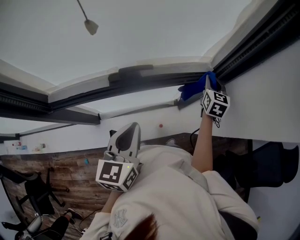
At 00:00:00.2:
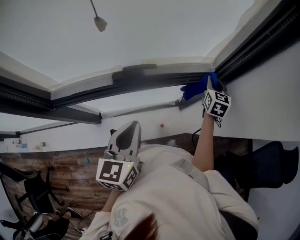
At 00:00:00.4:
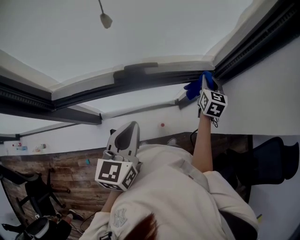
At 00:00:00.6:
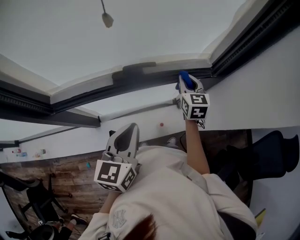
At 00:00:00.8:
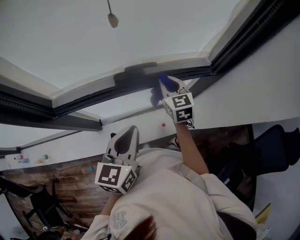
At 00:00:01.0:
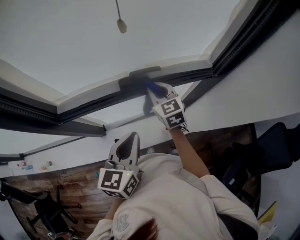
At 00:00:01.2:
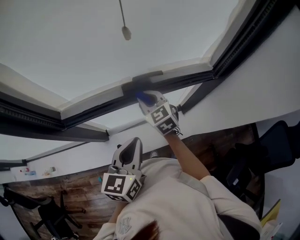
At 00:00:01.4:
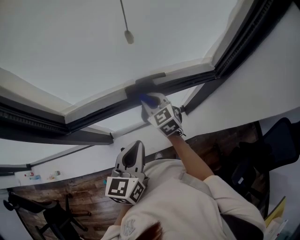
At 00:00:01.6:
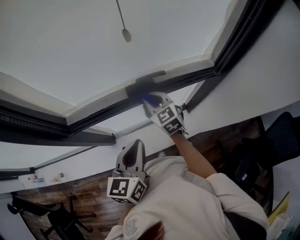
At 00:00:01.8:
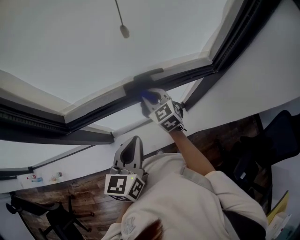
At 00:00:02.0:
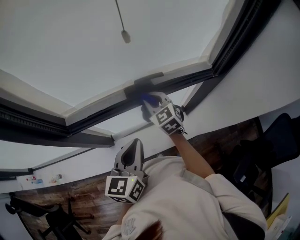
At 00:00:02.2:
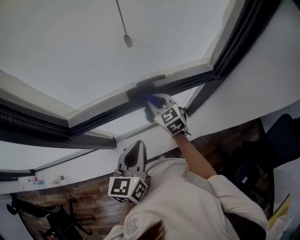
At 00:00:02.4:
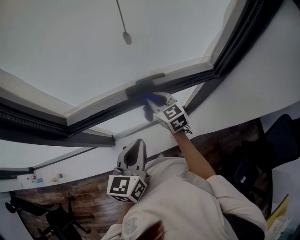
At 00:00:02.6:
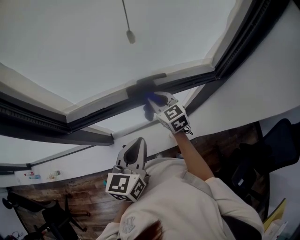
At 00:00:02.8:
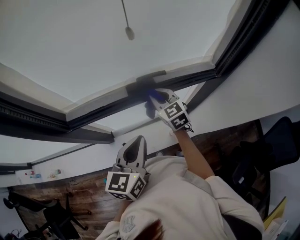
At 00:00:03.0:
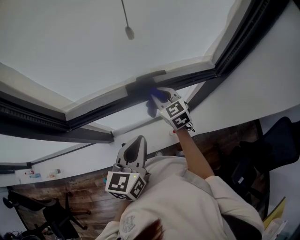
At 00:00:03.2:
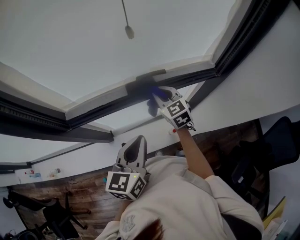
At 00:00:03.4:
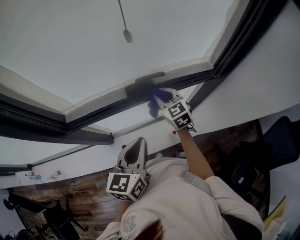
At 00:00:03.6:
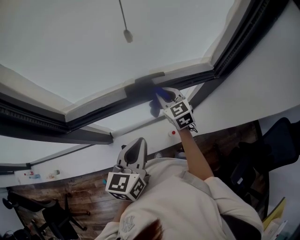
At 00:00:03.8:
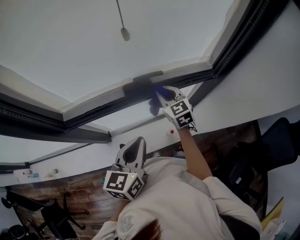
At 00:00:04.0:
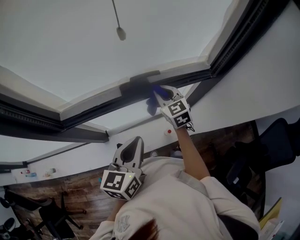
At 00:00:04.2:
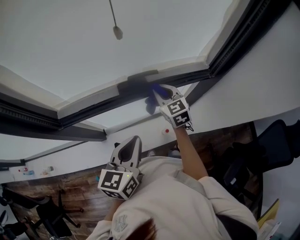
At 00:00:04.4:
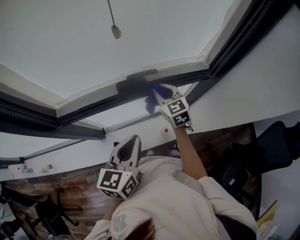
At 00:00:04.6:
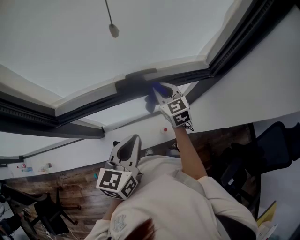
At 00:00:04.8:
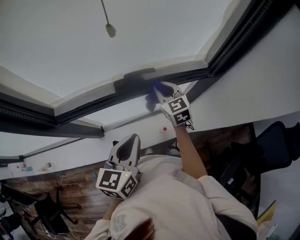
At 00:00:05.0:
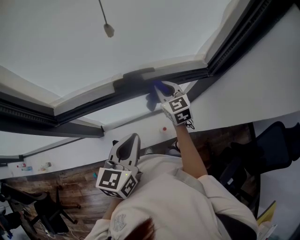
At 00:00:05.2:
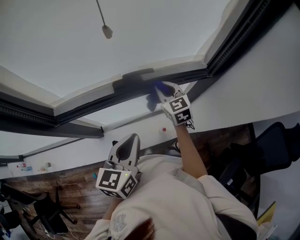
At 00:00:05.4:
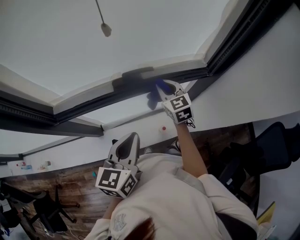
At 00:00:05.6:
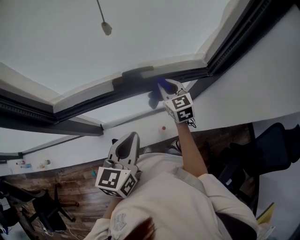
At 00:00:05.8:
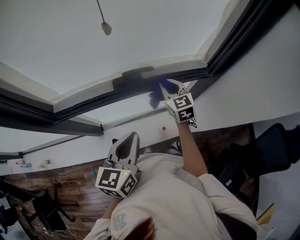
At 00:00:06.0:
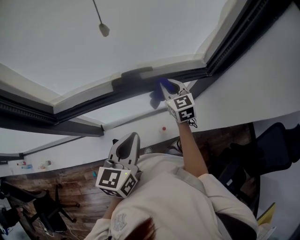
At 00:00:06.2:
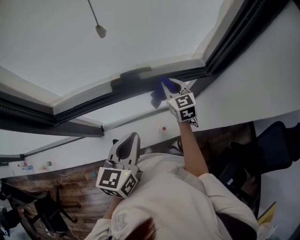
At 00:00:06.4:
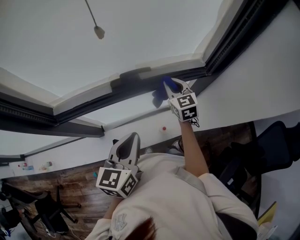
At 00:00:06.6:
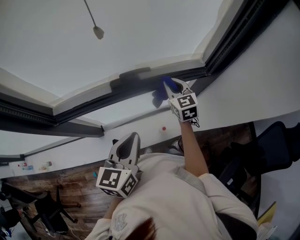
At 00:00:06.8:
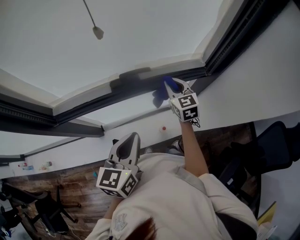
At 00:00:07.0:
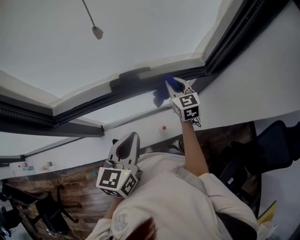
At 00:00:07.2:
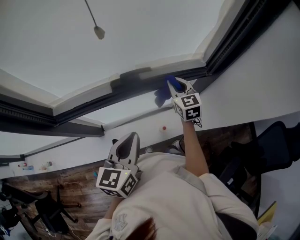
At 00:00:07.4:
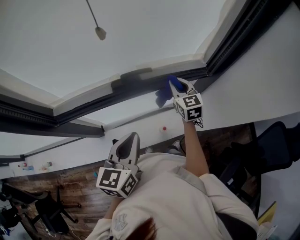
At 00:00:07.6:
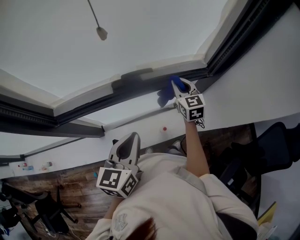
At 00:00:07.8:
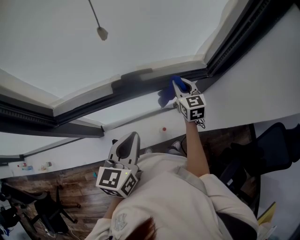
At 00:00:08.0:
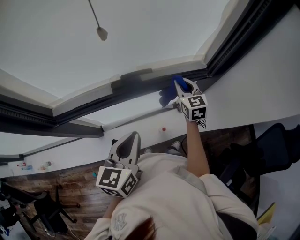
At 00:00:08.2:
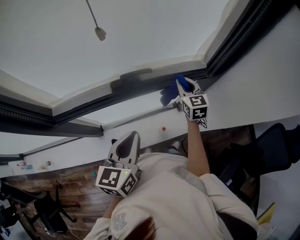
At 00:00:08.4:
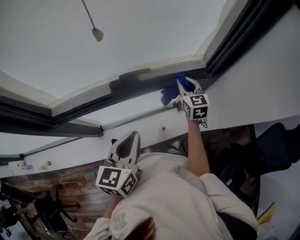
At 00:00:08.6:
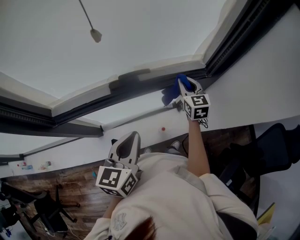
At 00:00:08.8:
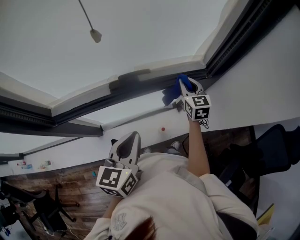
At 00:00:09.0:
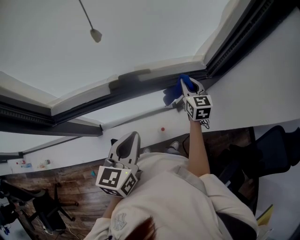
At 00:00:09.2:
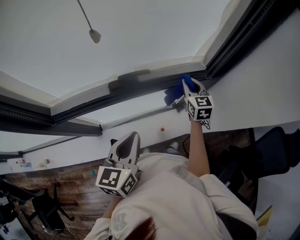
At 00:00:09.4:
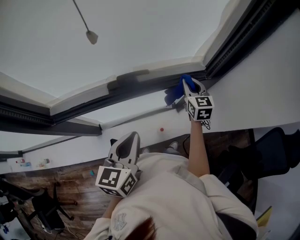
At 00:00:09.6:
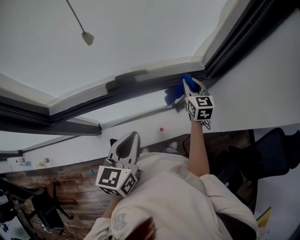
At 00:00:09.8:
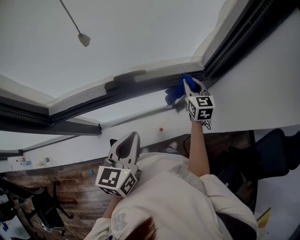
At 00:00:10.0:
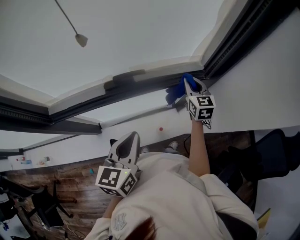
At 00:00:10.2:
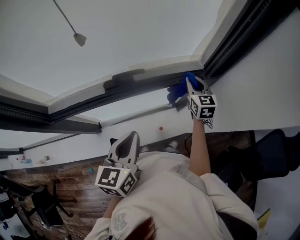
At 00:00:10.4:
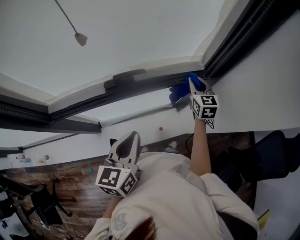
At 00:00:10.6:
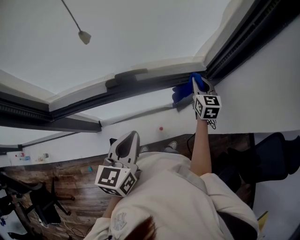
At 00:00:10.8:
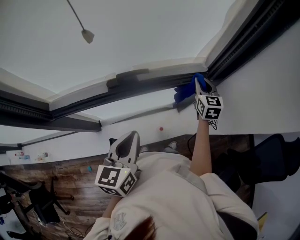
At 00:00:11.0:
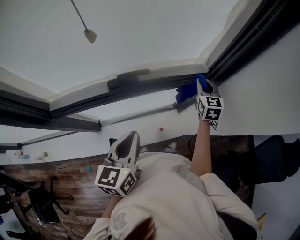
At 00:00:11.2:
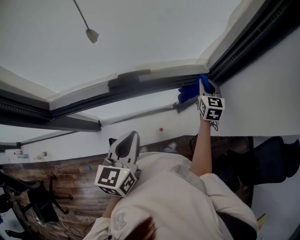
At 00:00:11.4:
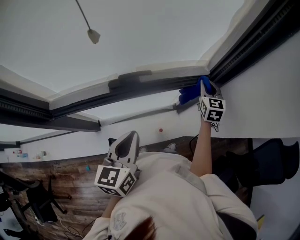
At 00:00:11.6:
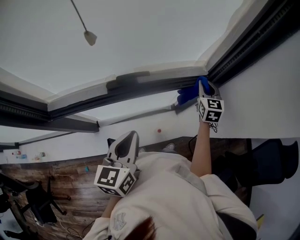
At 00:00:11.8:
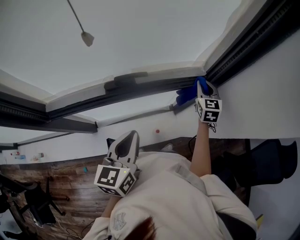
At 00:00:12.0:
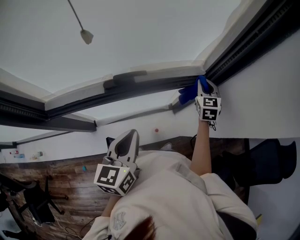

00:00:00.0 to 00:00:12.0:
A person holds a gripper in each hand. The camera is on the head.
00:00:00.0 to 00:00:01.6: The left gripper heads to the left, covering about 10 cm; the right gripper moves to the left, some 35 cm, and turns by roughly 40 degrees.
00:00:01.6 to 00:00:03.0: There are only small adjustments of the grippers.
00:00:03.0 to 00:00:04.4: The right gripper goes about 5 cm to the right.
00:00:04.4 to 00:00:06.0: The right gripper shifts about 5 cm to the right.
00:00:06.0 to 00:00:07.6: The right gripper shifts some 5 cm to the right.
00:00:07.6 to 00:00:09.0: The right gripper travels to the right by roughly 5 cm.
00:00:09.0 to 00:00:10.4: The right gripper heads to the right, covering roughly 5 cm.
00:00:10.4 to 00:00:12.0: The grippers make only small movements.

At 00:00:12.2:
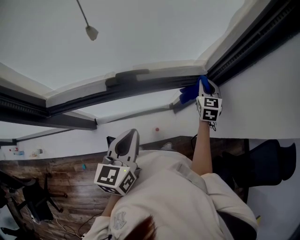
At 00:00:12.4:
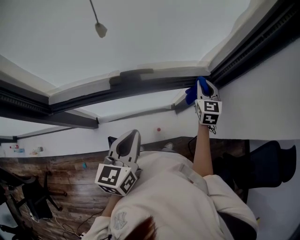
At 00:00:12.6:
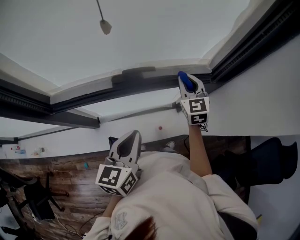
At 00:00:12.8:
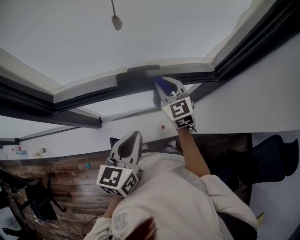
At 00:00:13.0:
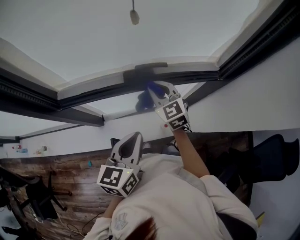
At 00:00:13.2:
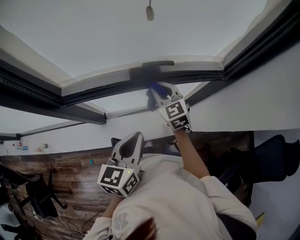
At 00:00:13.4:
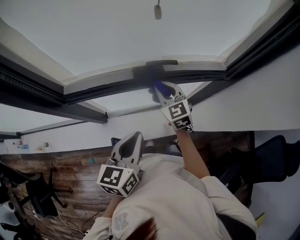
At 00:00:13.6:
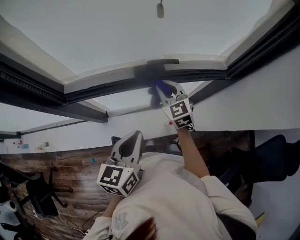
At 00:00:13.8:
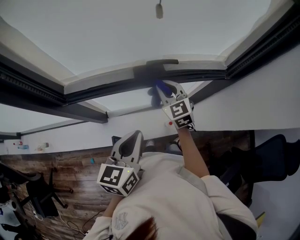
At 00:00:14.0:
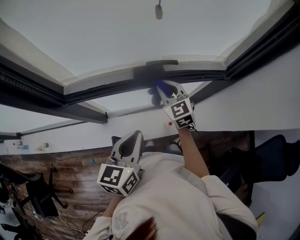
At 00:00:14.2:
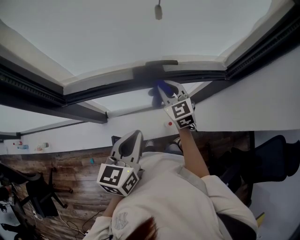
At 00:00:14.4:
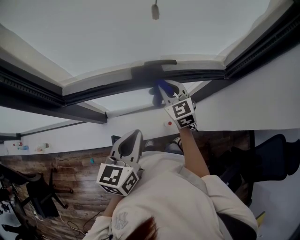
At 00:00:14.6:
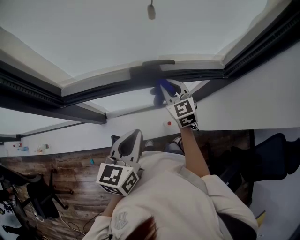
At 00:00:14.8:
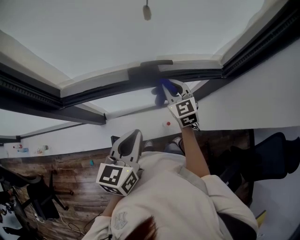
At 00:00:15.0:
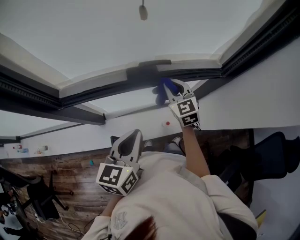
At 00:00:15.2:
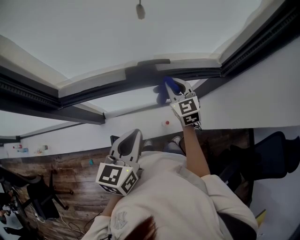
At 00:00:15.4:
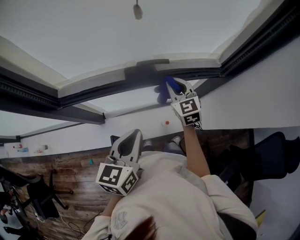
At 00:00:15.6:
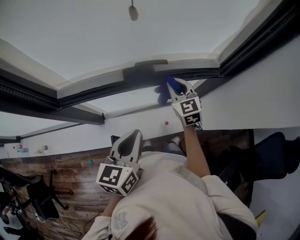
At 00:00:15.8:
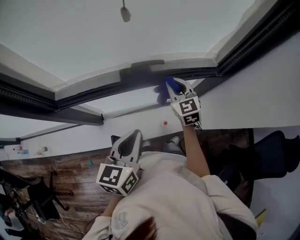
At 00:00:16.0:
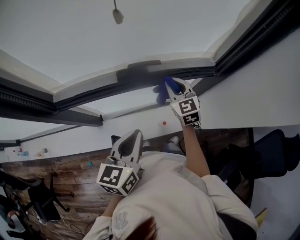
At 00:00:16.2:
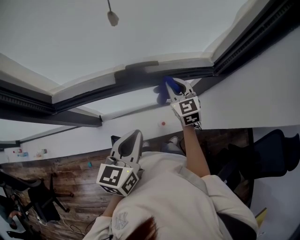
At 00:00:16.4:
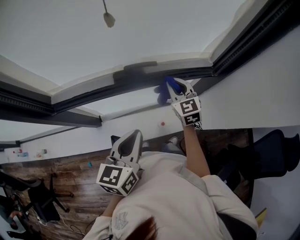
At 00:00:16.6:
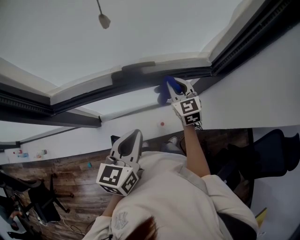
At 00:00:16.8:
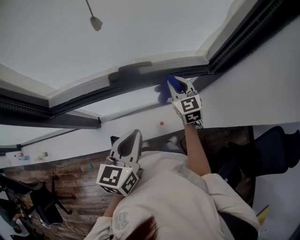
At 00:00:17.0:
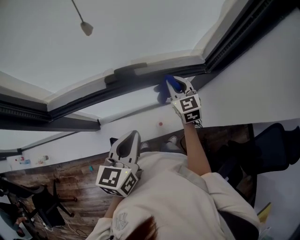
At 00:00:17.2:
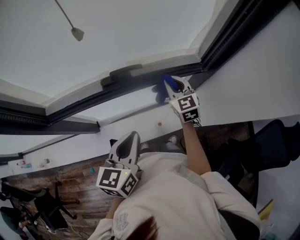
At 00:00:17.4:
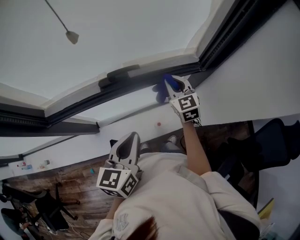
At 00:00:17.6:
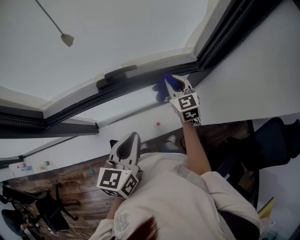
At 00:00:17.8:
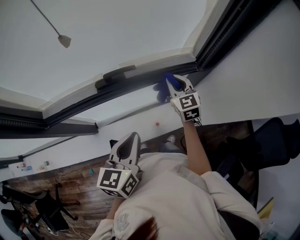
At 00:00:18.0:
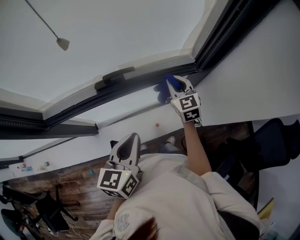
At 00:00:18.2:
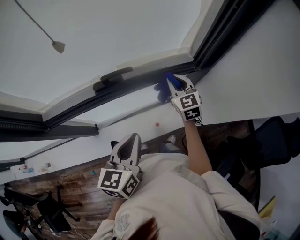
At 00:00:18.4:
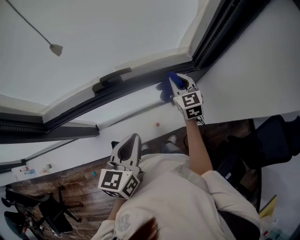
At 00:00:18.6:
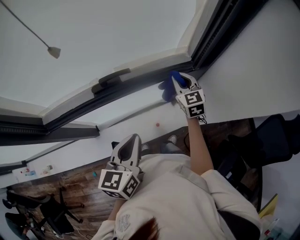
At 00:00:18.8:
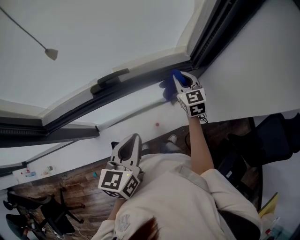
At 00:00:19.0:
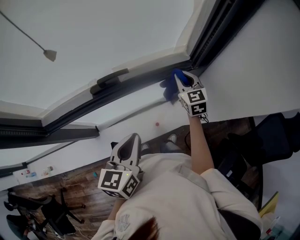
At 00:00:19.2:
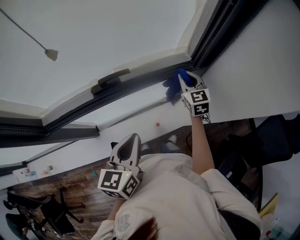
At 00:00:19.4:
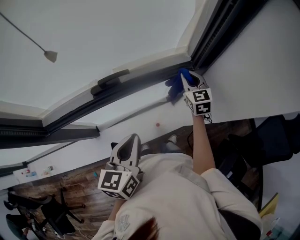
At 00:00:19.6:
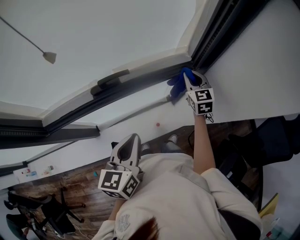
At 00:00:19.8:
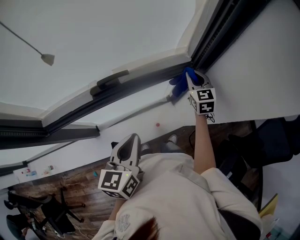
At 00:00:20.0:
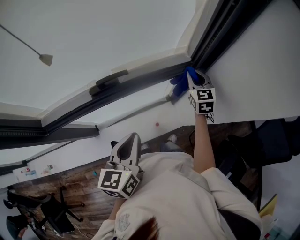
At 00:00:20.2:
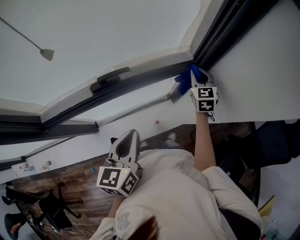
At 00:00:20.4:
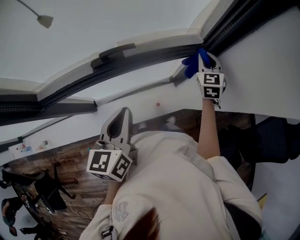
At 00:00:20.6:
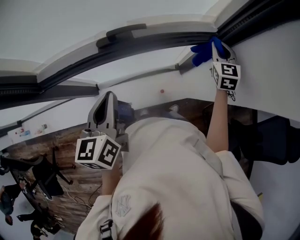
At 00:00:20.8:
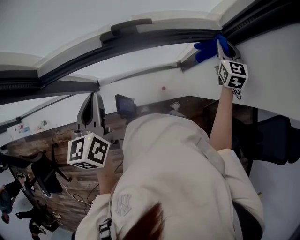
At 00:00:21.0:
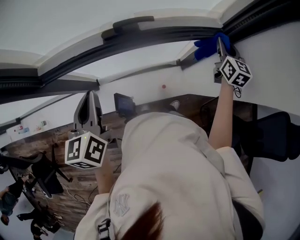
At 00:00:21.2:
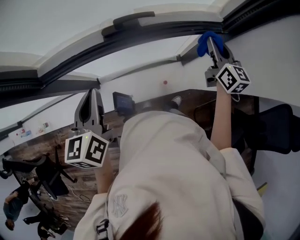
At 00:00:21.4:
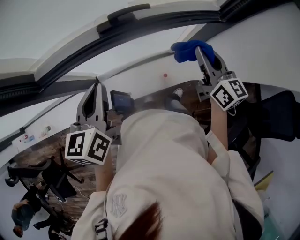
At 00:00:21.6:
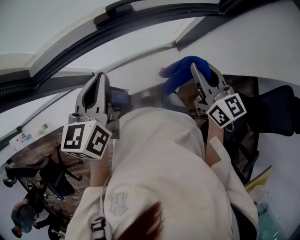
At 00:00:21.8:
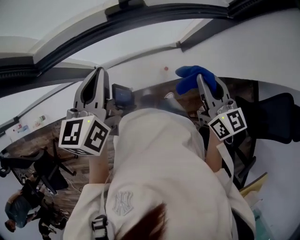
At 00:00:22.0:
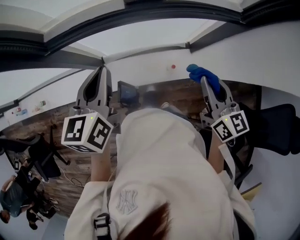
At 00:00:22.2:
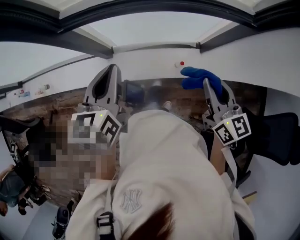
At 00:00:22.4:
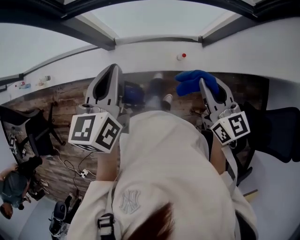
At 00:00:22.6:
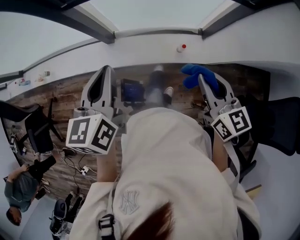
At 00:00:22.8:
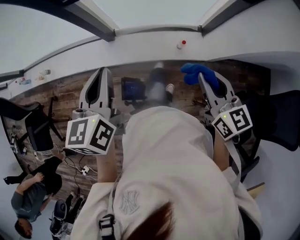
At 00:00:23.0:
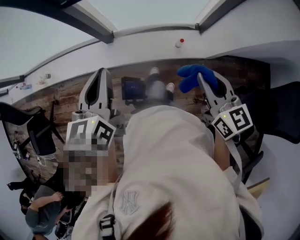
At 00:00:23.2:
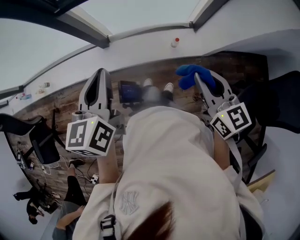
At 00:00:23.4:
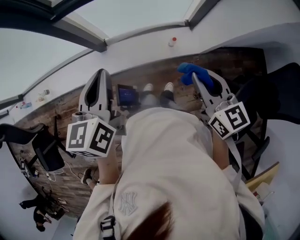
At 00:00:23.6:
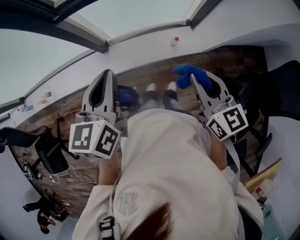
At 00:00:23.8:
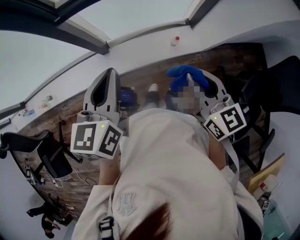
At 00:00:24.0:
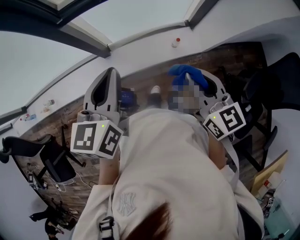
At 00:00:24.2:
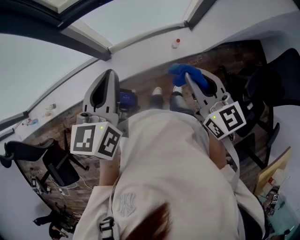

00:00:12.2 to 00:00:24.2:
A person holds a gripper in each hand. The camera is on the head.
00:00:12.2 to 00:00:13.8: The right gripper shifts approximately 30 cm to the left, and swivels roughly 30 degrees. Meanwhile the left gripper travels to the left by approximately 10 cm.
00:00:13.8 to 00:00:15.2: The right gripper goes some 5 cm to the right.
00:00:15.2 to 00:00:16.6: The right gripper moves to the right, roughly 5 cm.
00:00:16.6 to 00:00:18.2: The right gripper shifts about 10 cm to the right.
00:00:18.2 to 00:00:19.8: The right gripper moves to the right, some 10 cm.
00:00:19.8 to 00:00:21.2: The right gripper shifts roughly 5 cm backward, and swivels approximately 30 degrees. Meanwhile the left gripper travels to the left by approximately 15 cm, and rotates approximately 20 degrees.
00:00:21.2 to 00:00:22.6: The right gripper moves backward and to the left, approximately 40 cm, and changes its angle by roughly 30 degrees; the left gripper goes approximately 20 cm backward.
00:00:22.6 to 00:00:24.2: The left gripper travels to the left by some 5 cm, and swivels roughly 20 degrees. Meanwhile the right gripper is displaced to the left and backward by some 15 cm.
